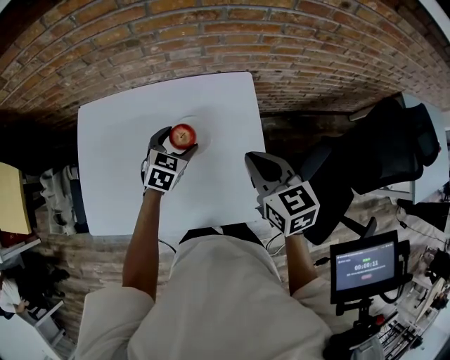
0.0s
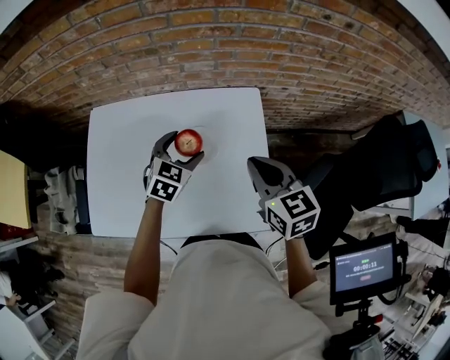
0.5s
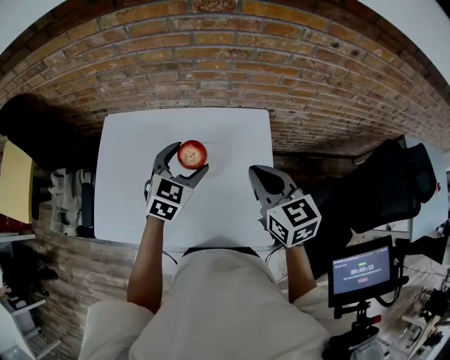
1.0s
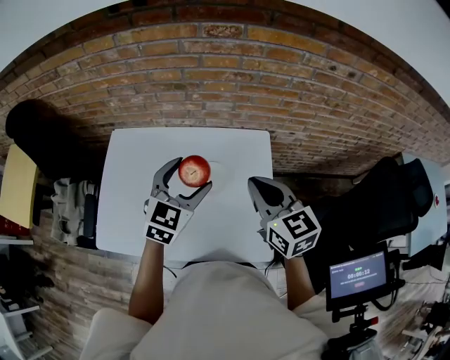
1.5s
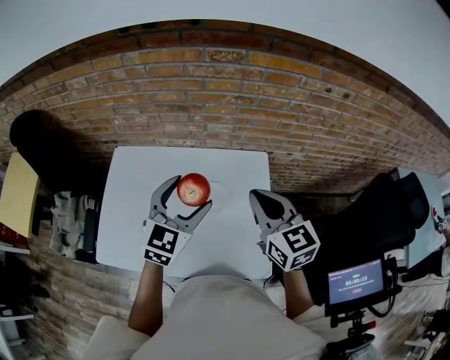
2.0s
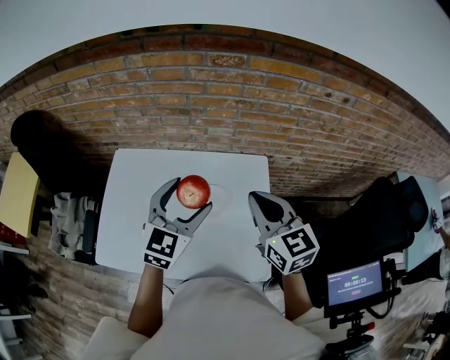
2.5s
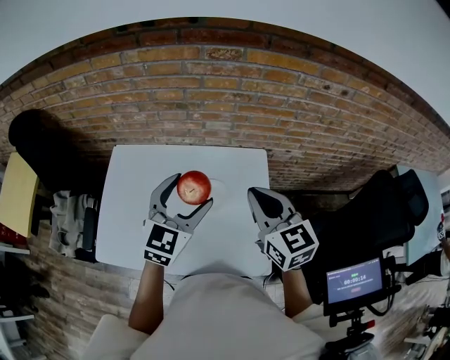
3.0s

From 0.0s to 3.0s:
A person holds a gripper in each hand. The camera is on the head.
From 0.0s to 1.5s: The left gripper is displaced upward by approximately 20 cm, and turns by approximately 20 degrees. Meanwhile the right gripper shifts approximately 10 cm upward.
From 1.5s to 3.0s: The grippers stay close to where they were, moving slightly.

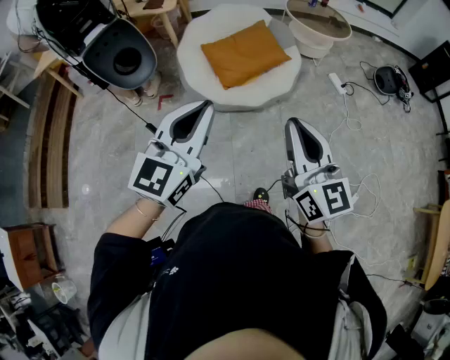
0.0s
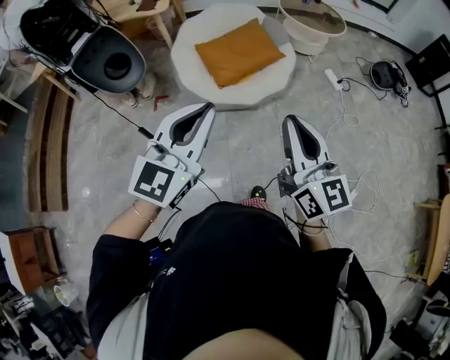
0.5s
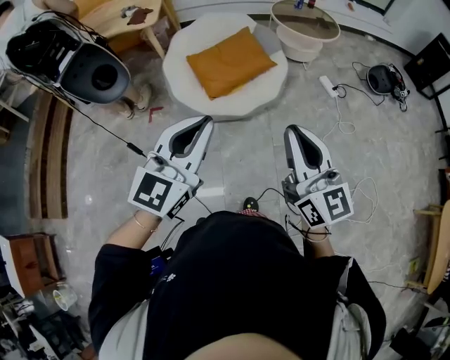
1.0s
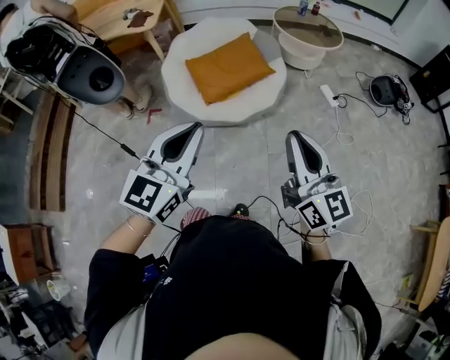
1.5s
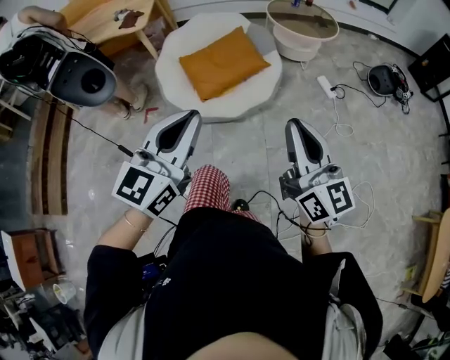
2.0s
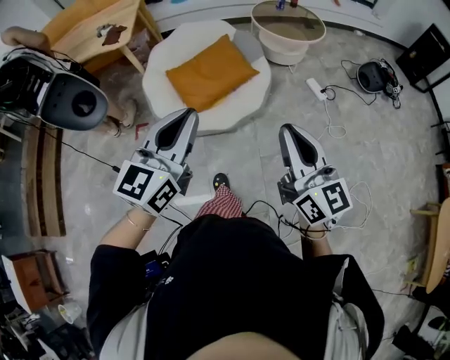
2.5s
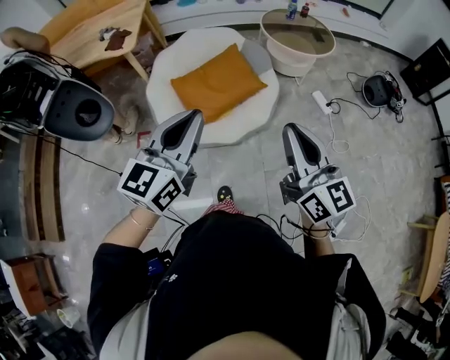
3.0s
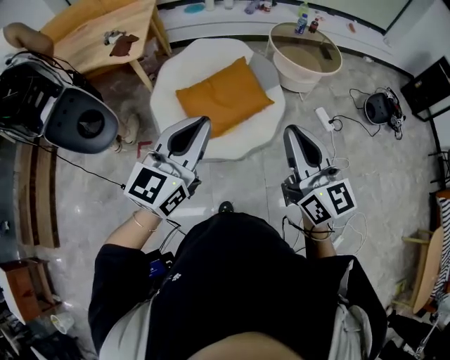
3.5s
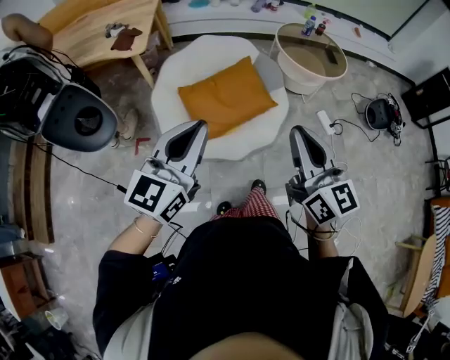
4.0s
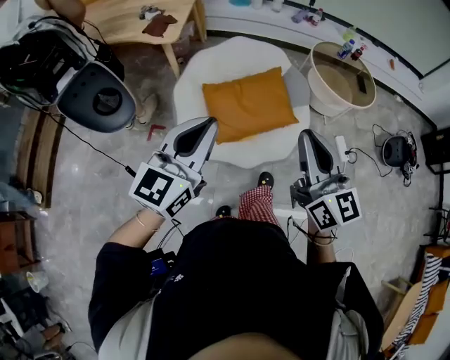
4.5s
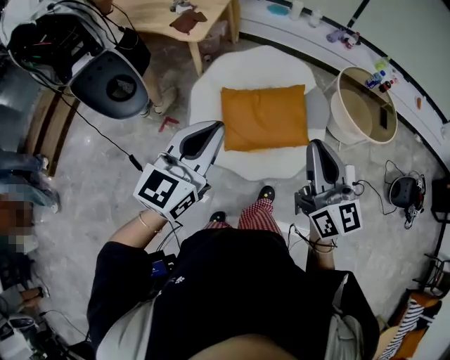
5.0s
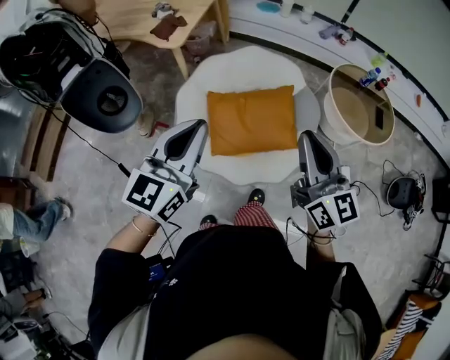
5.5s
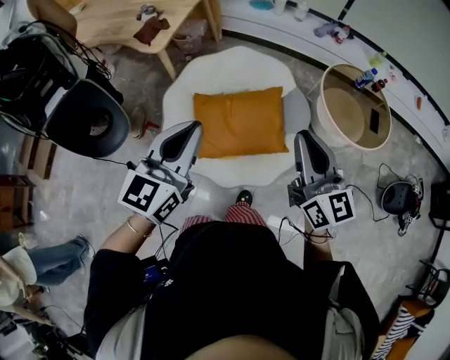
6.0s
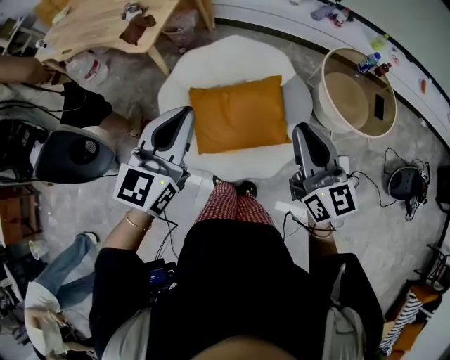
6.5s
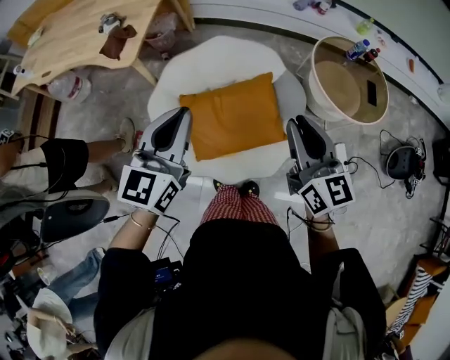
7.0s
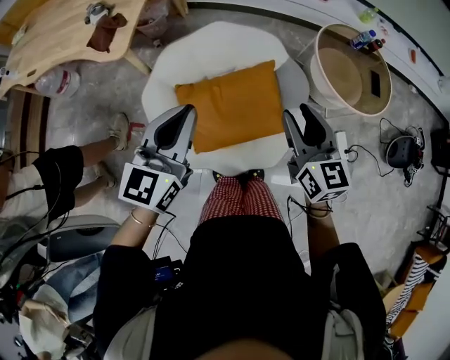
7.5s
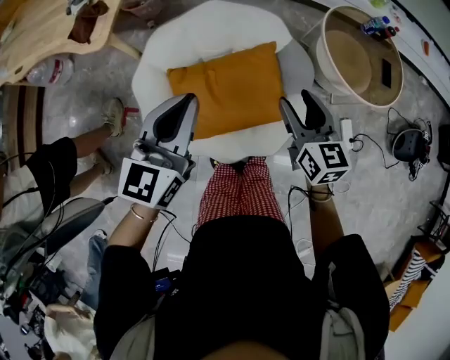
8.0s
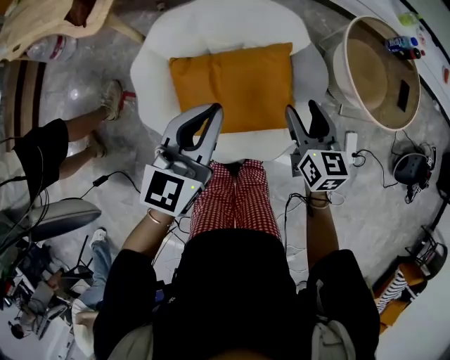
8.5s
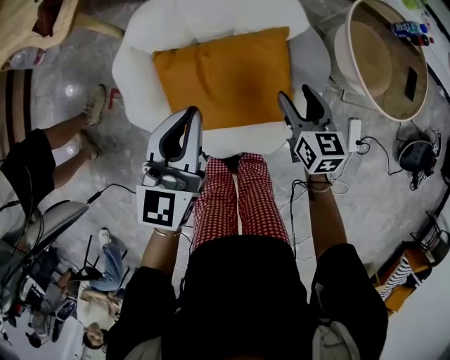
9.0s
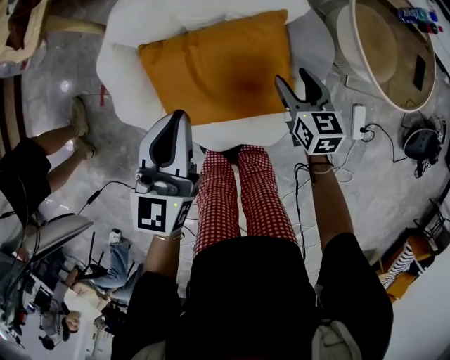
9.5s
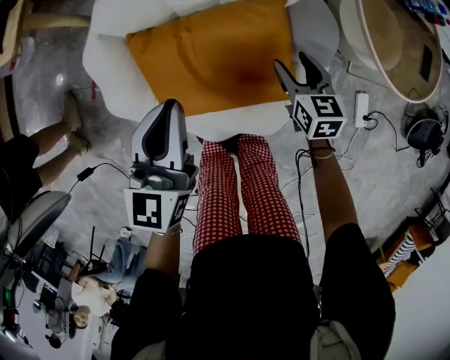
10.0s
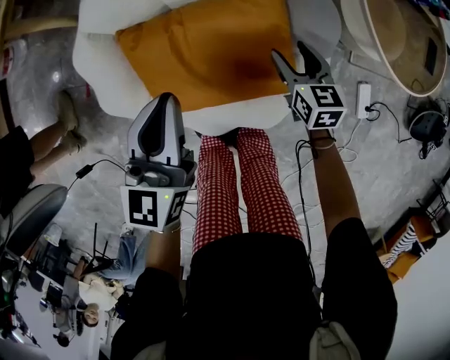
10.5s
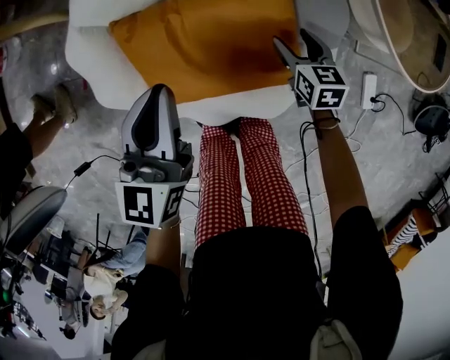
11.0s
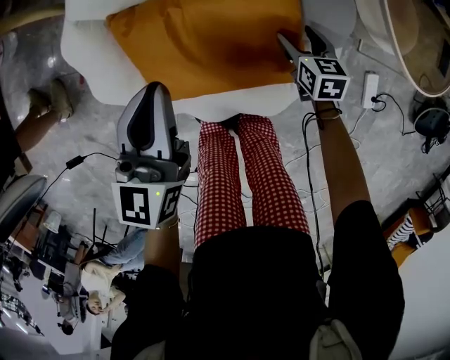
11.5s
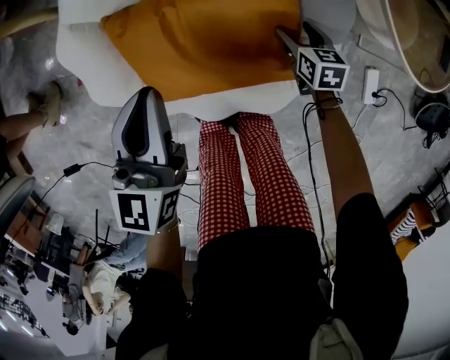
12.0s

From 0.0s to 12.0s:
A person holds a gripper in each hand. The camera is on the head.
From 0.0s to 2.0s: The two grippers go approximately 20 cm to the right and forward.
From 2.0s to 4.0s: The two grippers go some 30 cm forward and to the left.
From 4.0s to 6.0s: The two grippers go some 30 cm forward and to the right. The left gripper swivels roughly 20 degrees.
From 6.0s to 8.0s: The right gripper goes about 25 cm downward and forward, swivels some 30 degrees, and opens its fingers, while the left gripper moves forward and downward, some 20 cm.
From 8.0s to 10.0s: The grippers both shift downward by about 25 cm.
From 10.0s to 12.0s: The left gripper moves downward, about 5 cm, while the right gripper travels downward by about 15 cm.

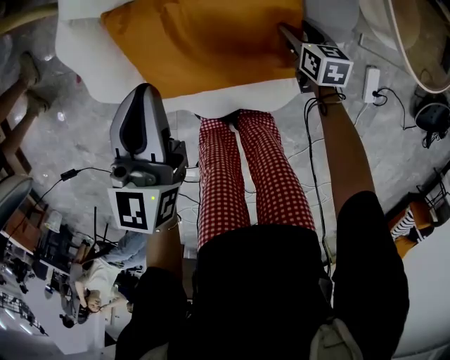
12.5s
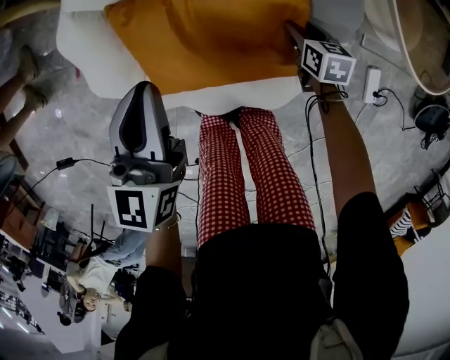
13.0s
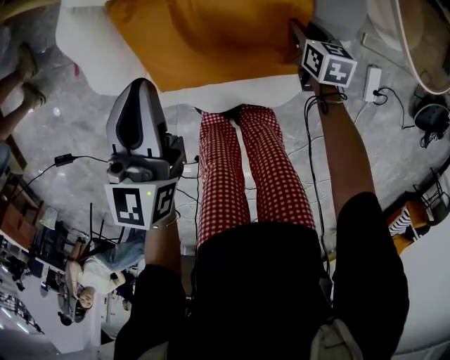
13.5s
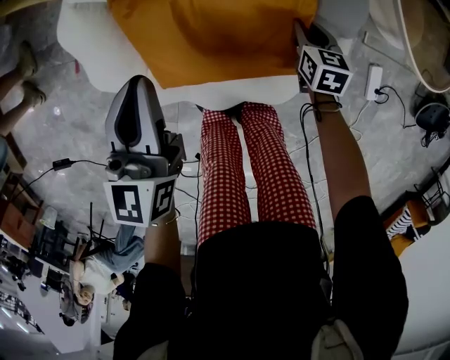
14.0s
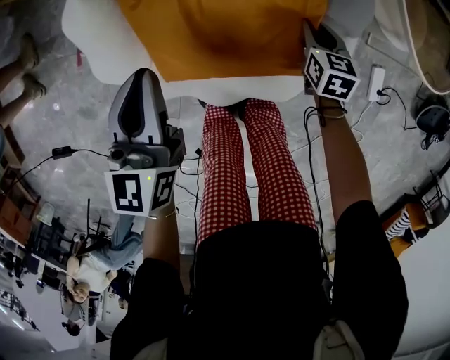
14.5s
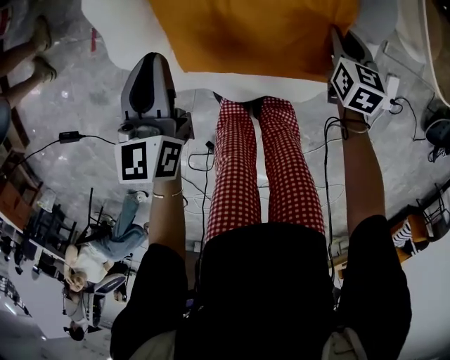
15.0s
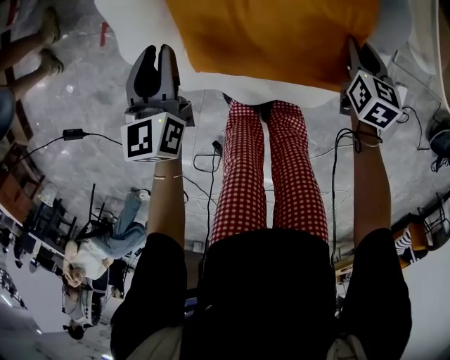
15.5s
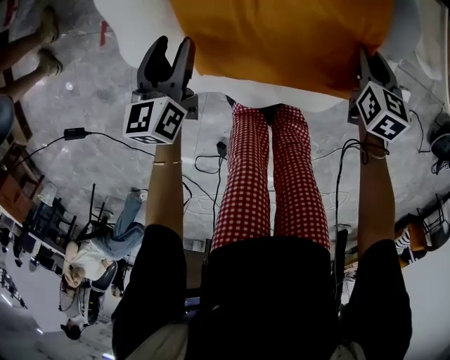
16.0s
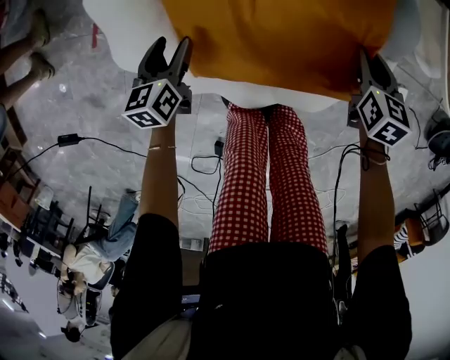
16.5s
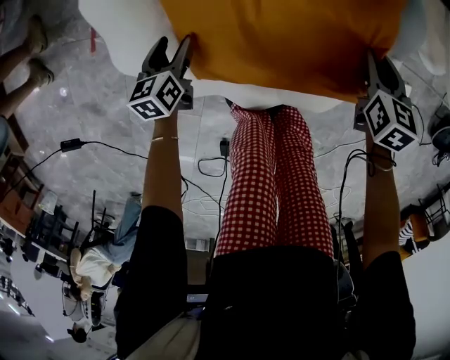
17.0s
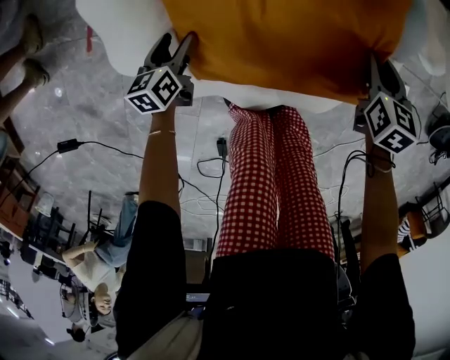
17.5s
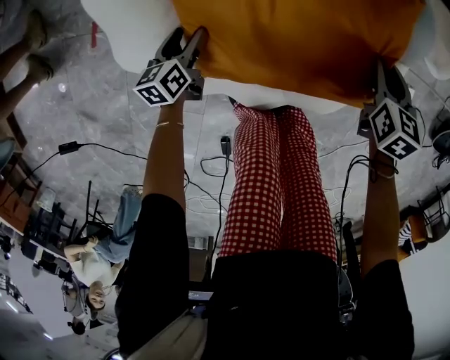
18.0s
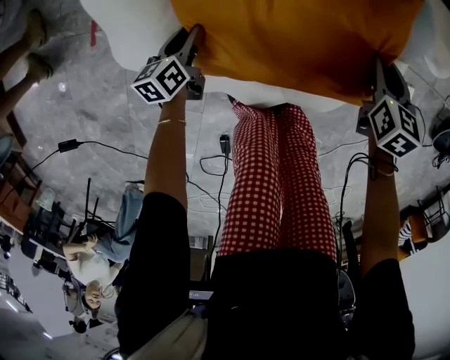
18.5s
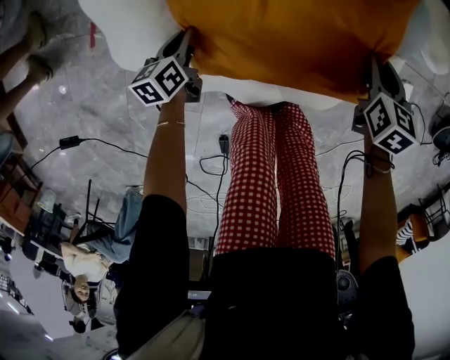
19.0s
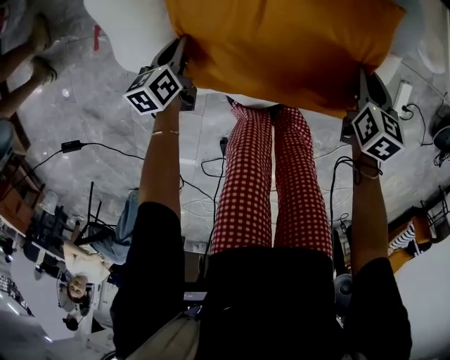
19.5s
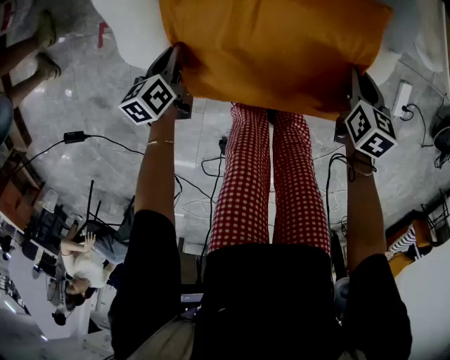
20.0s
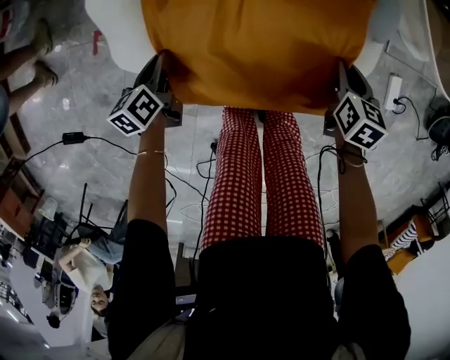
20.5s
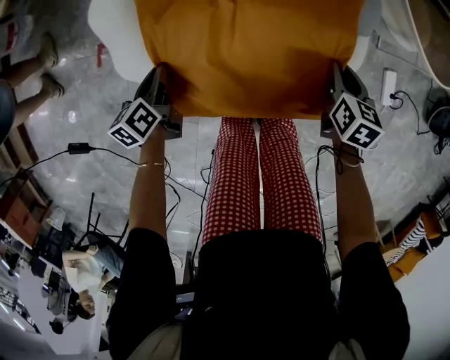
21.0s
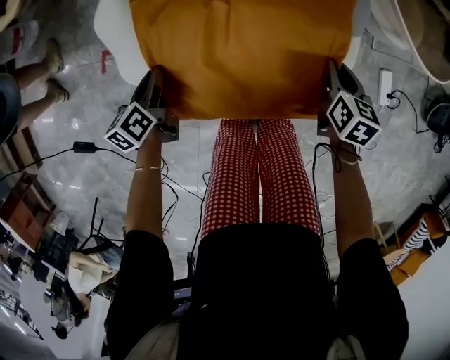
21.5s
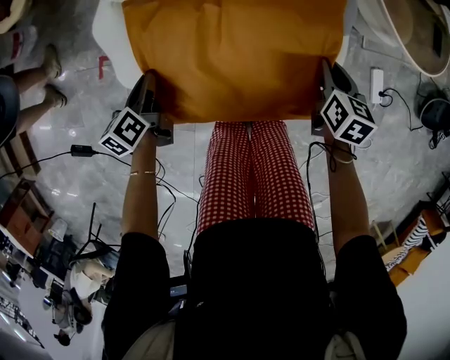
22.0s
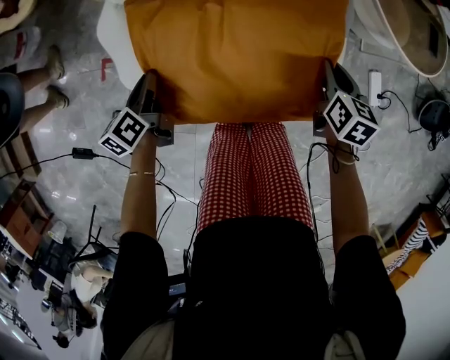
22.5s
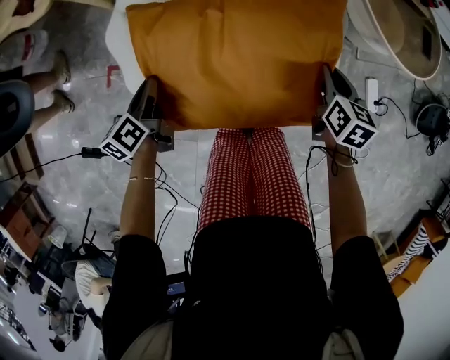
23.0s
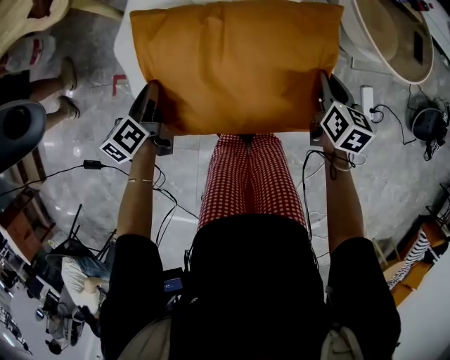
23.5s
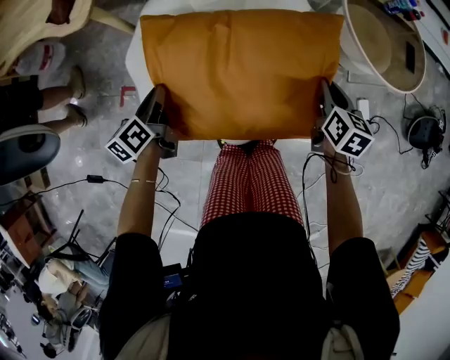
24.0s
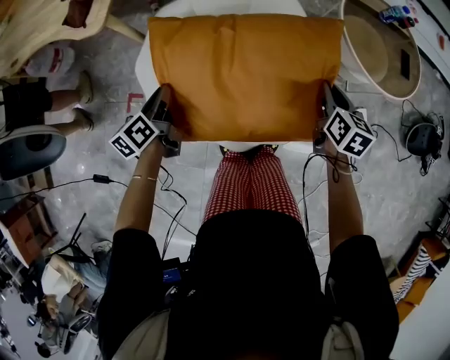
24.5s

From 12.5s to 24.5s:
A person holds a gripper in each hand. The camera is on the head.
From 12.5s to 14.5s: The left gripper goes some 5 cm to the left. Meanwhile the right gripper shifts by some 5 cm, and closes up.
From 14.5s to 16.5s: The left gripper shifts approximately 25 cm downward and to the left, swivels some 20 degrees, and opens its fingers.
From 16.5s to 18.5s: The left gripper is displaced downward by some 10 cm, and closes.
From 18.5s to 20.5s: The left gripper is displaced upward and backward by about 10 cm, and closes up. Meanwhile the right gripper shifts some 5 cm backward.
From 20.5s to 22.5s: The grippers both shift upward by about 10 cm.
From 22.5s to 24.5s: Both grippers travel together upward, roughly 15 cm.
